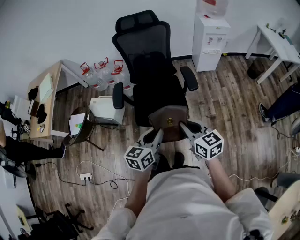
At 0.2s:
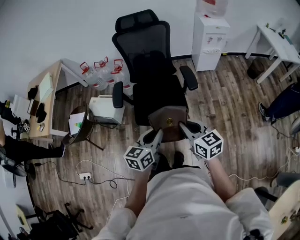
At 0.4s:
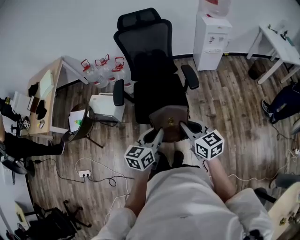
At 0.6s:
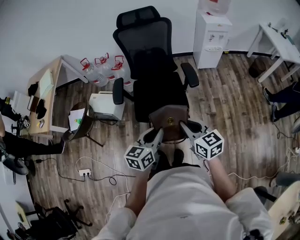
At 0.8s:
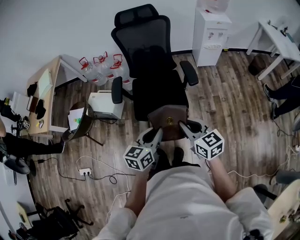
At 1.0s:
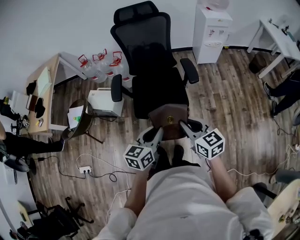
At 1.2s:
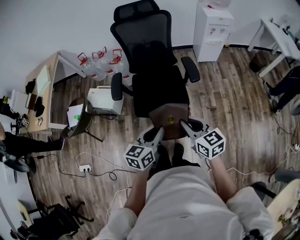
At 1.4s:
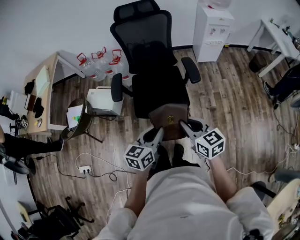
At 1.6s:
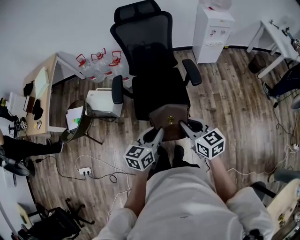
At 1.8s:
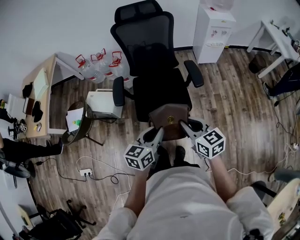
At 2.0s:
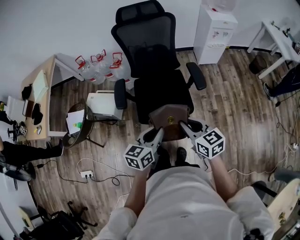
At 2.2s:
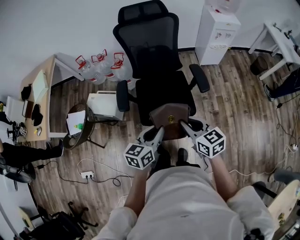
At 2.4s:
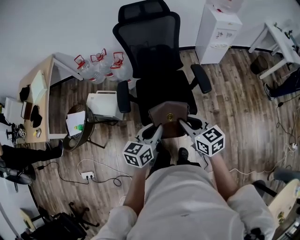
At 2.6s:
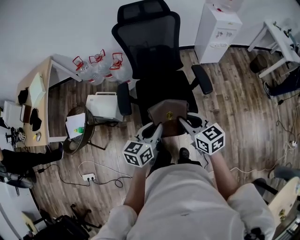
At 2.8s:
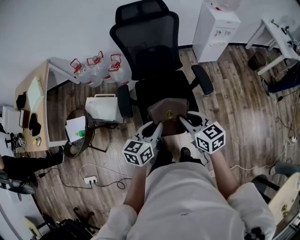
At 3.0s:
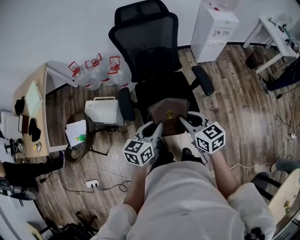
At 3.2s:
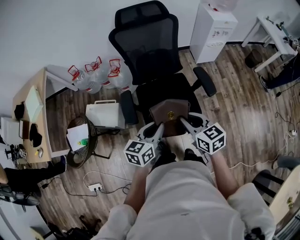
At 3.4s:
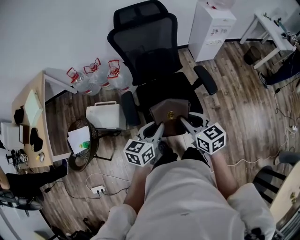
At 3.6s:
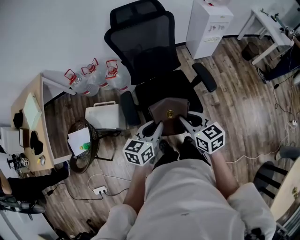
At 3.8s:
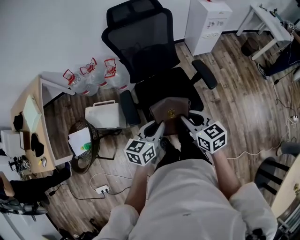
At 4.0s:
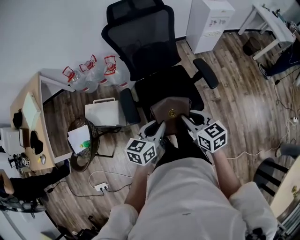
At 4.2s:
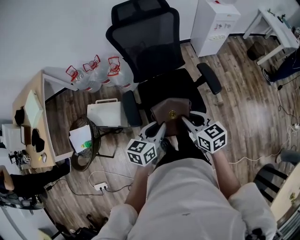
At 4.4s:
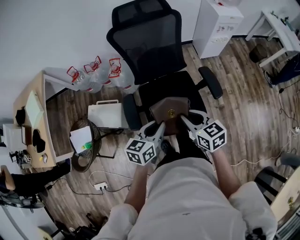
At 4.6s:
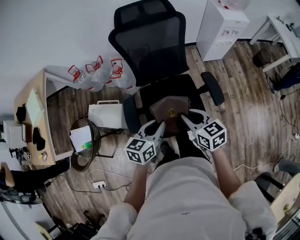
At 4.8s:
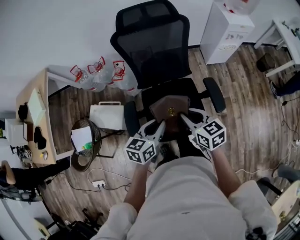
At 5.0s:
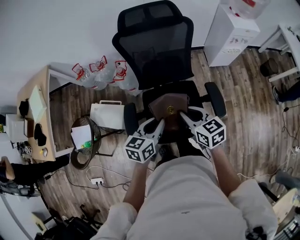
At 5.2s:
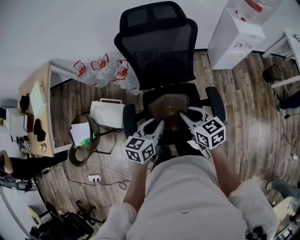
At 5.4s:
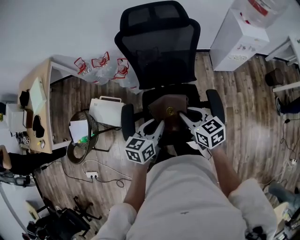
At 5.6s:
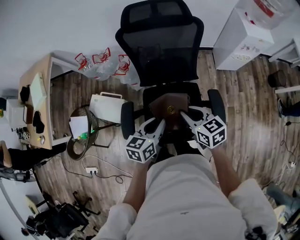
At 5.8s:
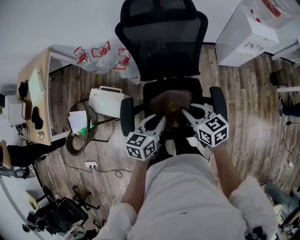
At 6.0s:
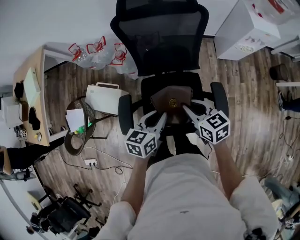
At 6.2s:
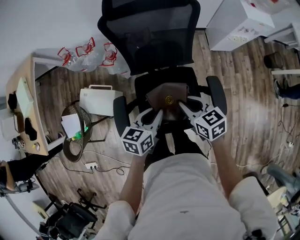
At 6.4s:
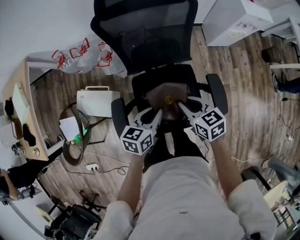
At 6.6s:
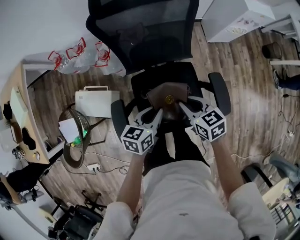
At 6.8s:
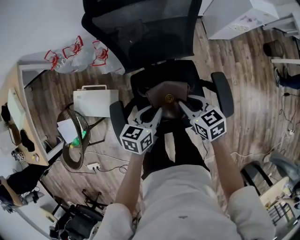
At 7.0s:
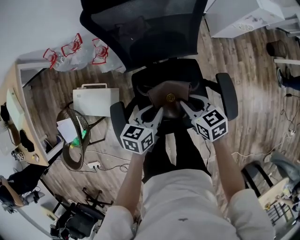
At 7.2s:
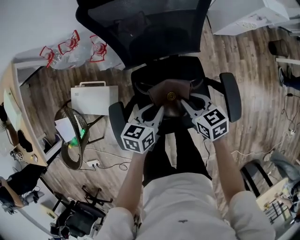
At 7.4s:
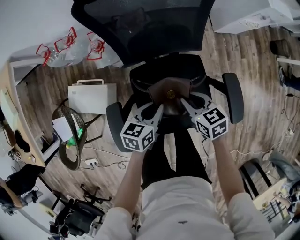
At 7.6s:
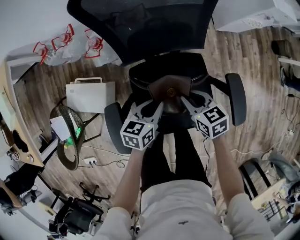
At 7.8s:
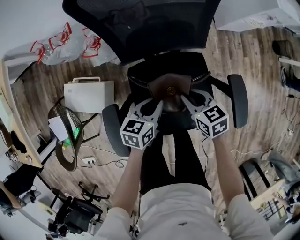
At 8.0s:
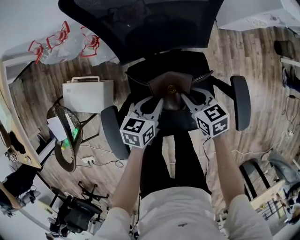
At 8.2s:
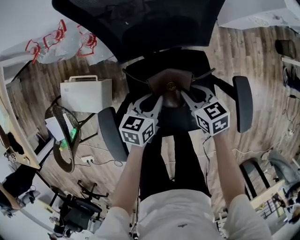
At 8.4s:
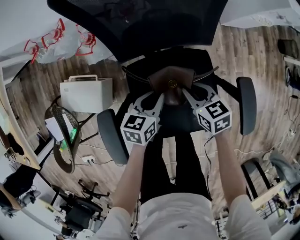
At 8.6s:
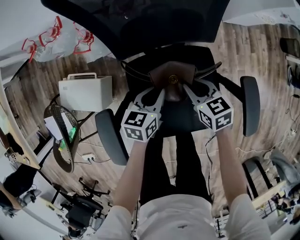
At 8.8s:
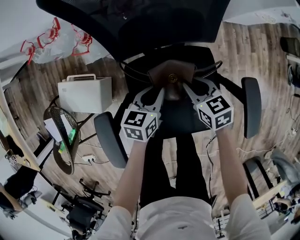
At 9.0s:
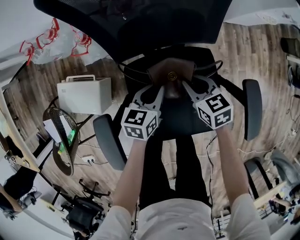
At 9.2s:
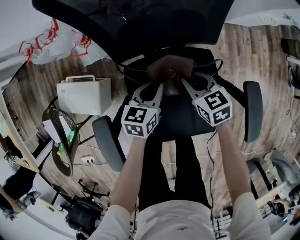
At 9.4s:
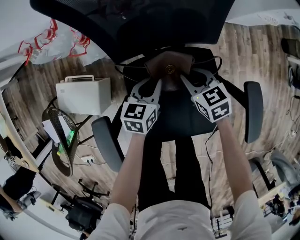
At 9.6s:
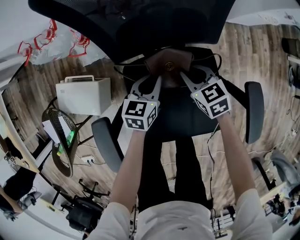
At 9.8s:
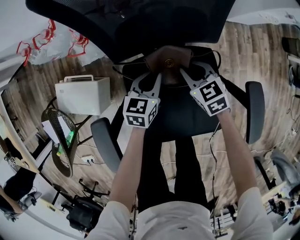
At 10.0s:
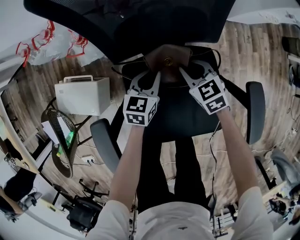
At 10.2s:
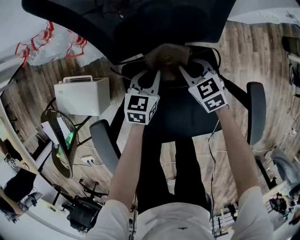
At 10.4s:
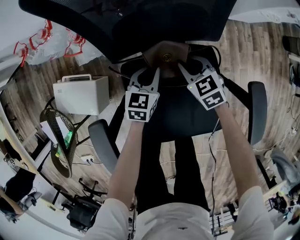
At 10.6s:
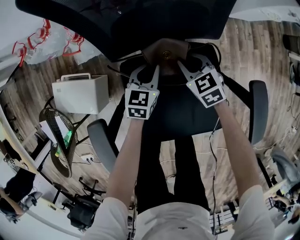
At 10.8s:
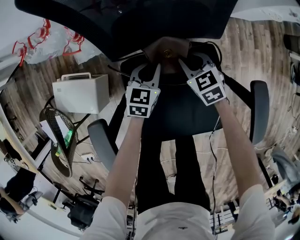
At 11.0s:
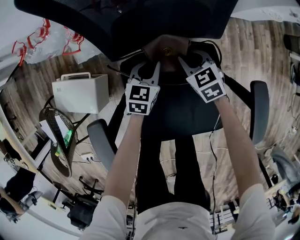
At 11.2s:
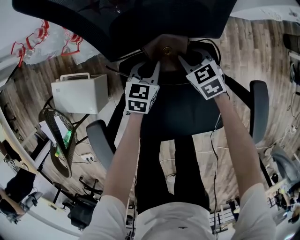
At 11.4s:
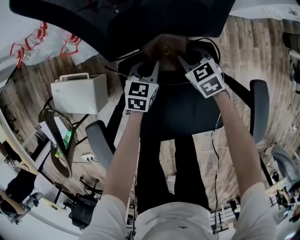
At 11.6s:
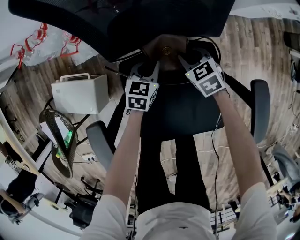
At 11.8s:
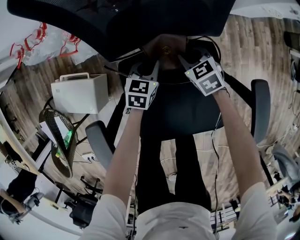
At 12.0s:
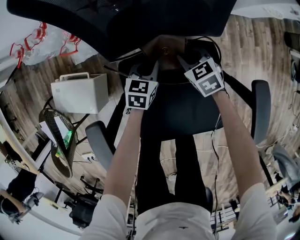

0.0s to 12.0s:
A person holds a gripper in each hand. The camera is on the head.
0.0s to 1.6s: The grippers make only small movements.
1.6s to 3.0s: Both grippers move forward and to the left, some 20 cm.
3.0s to 4.4s: Both grippers travel together forward, approximately 5 cm.
4.4s to 6.0s: The two grippers go approximately 15 cm forward.
6.0s to 7.6s: Both grippers travel together downward, roughly 20 cm.
7.6s to 9.0s: Both grippers travel together downward and forward, roughly 10 cm.
9.0s to 10.4s: Both grippers move downward and forward, about 10 cm.
10.4s to 12.0s: The left gripper is displaced downward by some 5 cm.

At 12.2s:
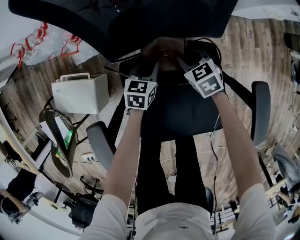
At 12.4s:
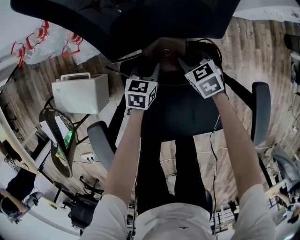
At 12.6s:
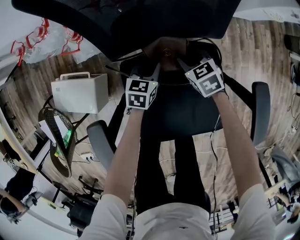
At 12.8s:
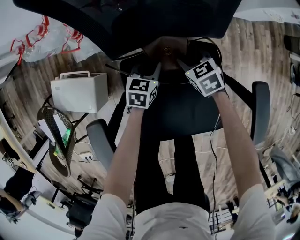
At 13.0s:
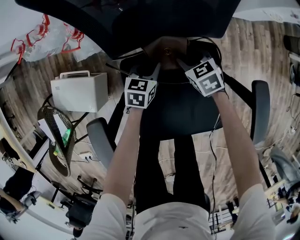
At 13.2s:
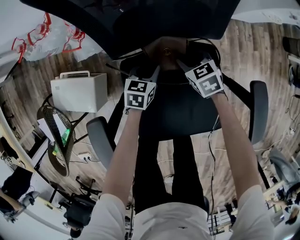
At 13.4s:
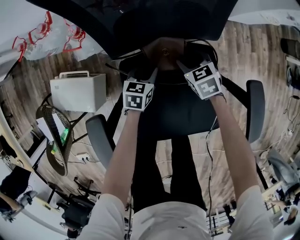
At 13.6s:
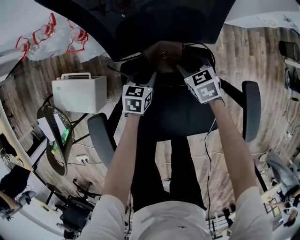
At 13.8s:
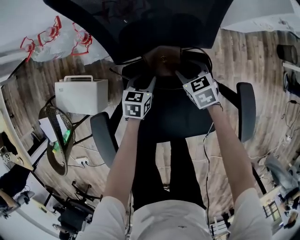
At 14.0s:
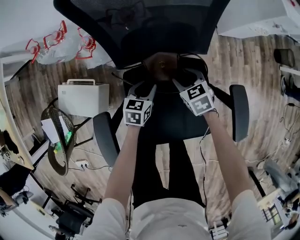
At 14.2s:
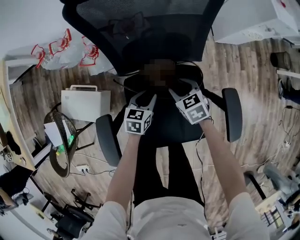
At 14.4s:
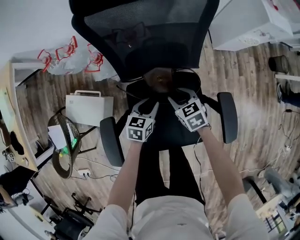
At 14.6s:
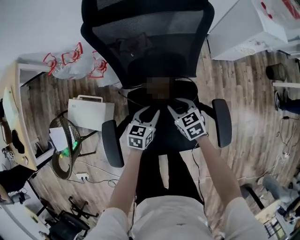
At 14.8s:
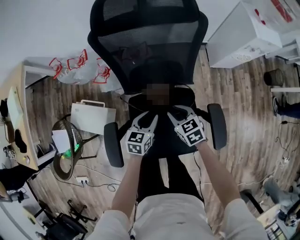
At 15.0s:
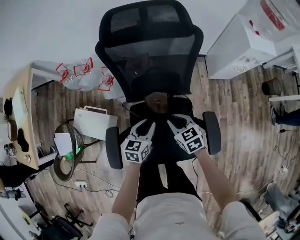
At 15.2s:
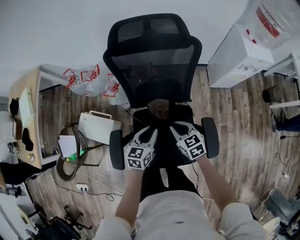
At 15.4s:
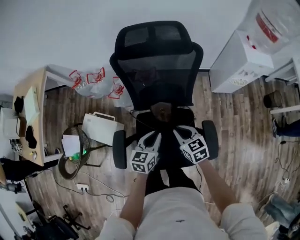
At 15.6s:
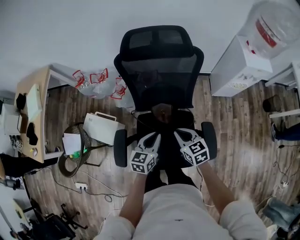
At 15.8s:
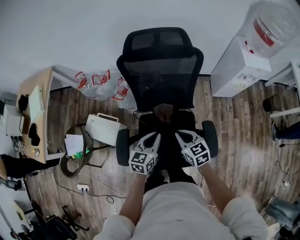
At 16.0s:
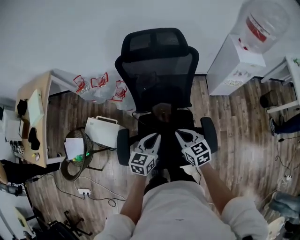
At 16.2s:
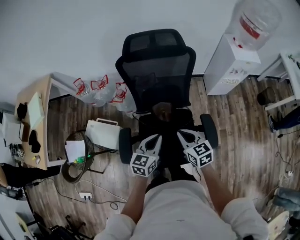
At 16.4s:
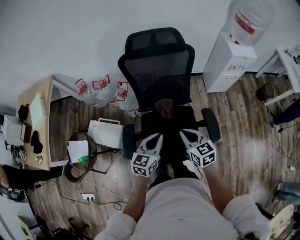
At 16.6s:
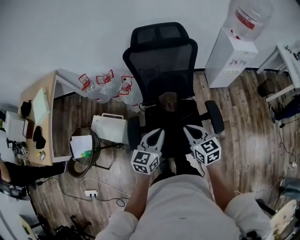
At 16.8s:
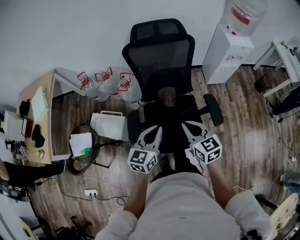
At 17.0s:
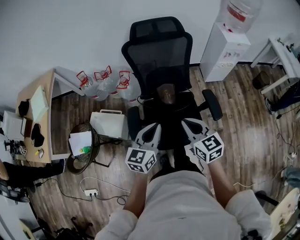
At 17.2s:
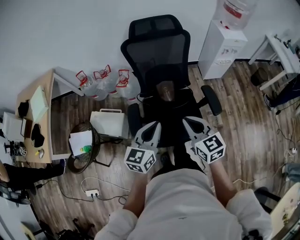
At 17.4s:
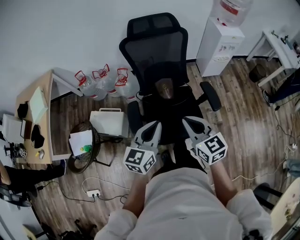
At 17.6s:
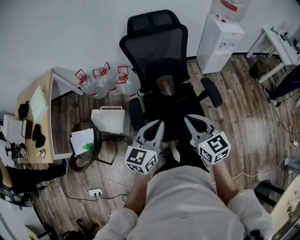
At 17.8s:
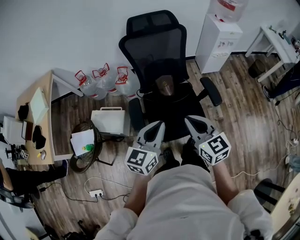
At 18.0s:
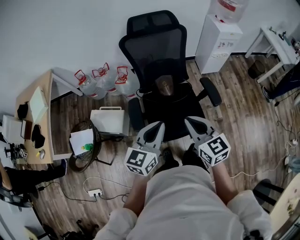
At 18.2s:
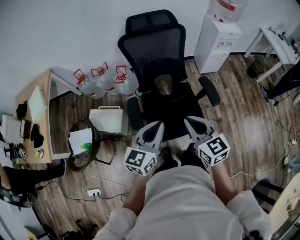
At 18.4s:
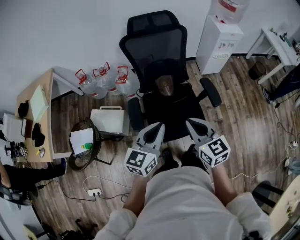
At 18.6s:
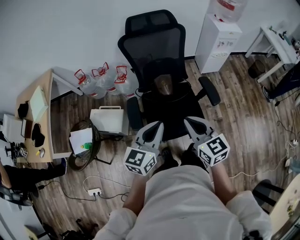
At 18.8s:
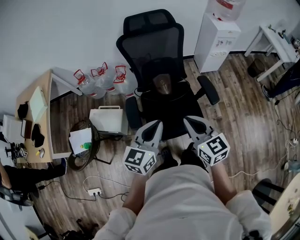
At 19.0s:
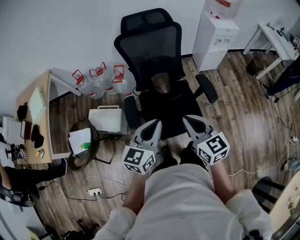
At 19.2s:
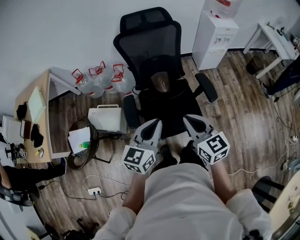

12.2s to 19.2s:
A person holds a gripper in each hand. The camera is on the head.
12.2s to 13.6s: The right gripper opens up.
13.6s to 15.0s: The grippers both shift upward by some 25 cm. The right gripper closes up.
15.0s to 16.4s: The two grippers go some 20 cm upward and backward. The right gripper closes up. Meanwhile the left gripper closes.
16.4s to 17.8s: The two grippers go about 20 cm backward and upward.
17.8s to 19.2s: The grippers stay close to where they were, moving slightly.

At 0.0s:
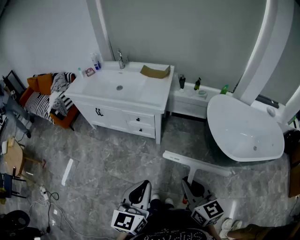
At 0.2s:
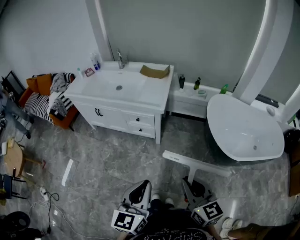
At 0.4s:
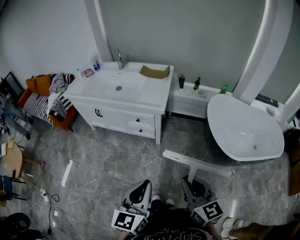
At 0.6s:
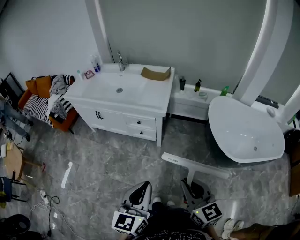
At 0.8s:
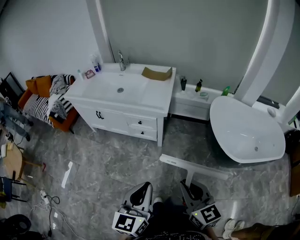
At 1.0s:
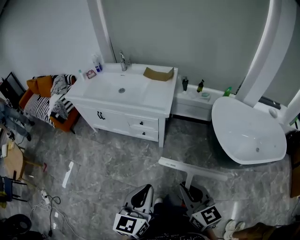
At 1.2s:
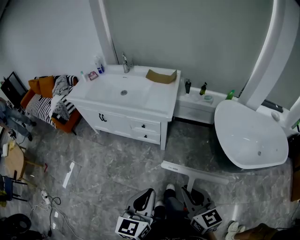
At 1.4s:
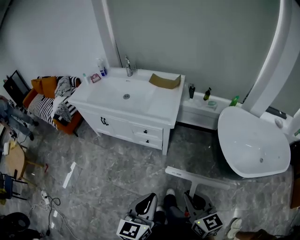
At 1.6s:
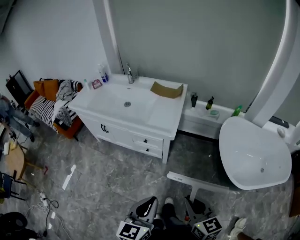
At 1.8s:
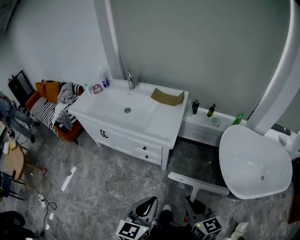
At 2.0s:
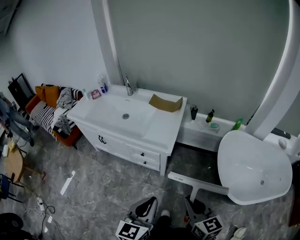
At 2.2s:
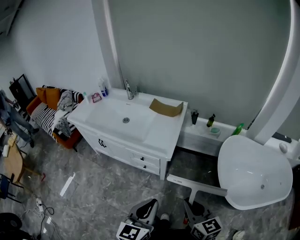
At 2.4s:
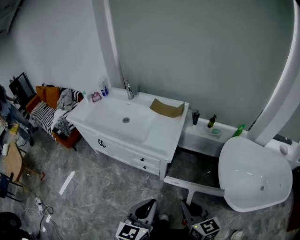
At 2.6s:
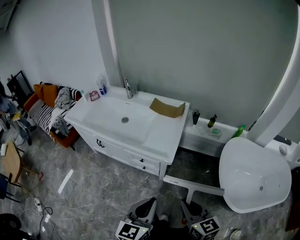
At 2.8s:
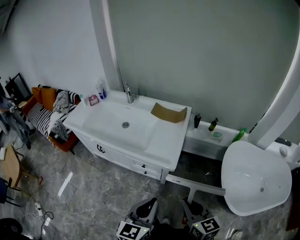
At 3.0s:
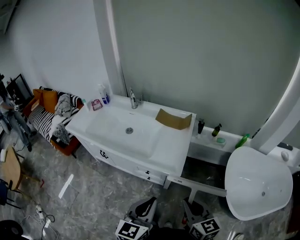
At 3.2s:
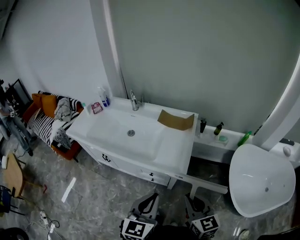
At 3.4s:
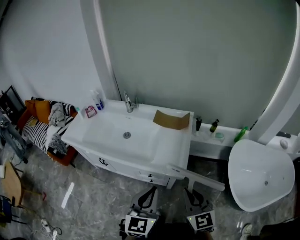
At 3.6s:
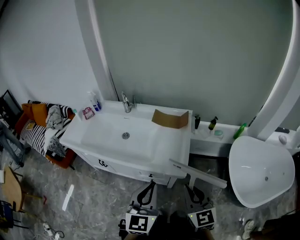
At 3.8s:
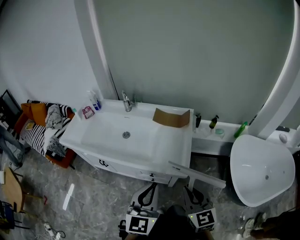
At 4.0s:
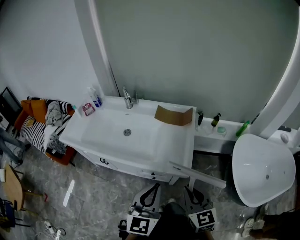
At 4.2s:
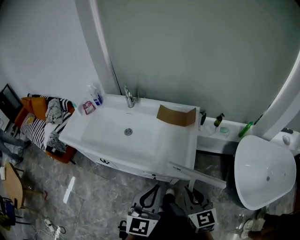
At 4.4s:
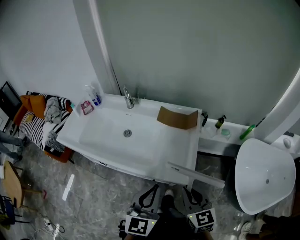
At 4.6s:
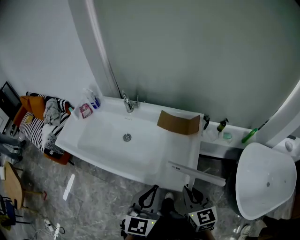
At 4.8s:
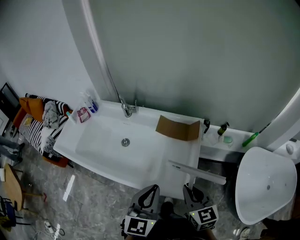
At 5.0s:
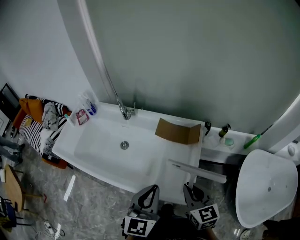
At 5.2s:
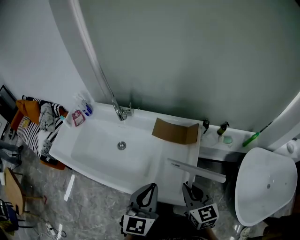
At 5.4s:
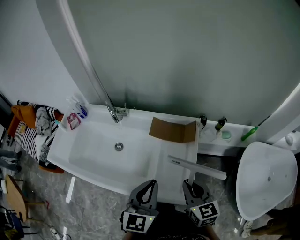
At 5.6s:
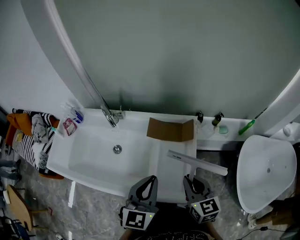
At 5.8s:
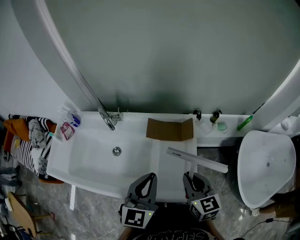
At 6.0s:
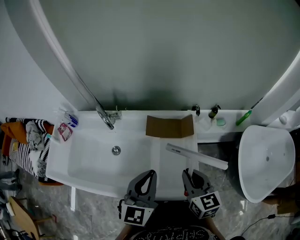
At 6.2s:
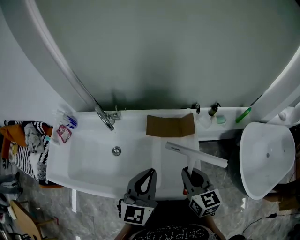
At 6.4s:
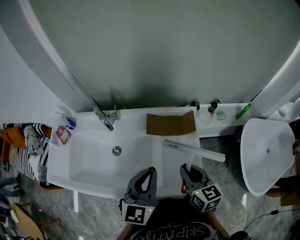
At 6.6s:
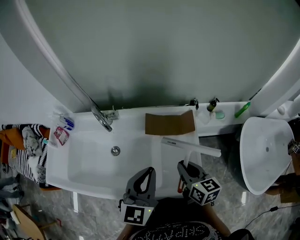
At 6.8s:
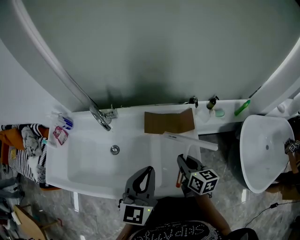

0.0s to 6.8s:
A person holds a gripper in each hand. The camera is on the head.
0.0s to 1.4s: The grippers both shift forward by roughly 5 cm.
1.4s to 2.8s: Both grippers travel together forward, about 25 cm.
2.8s to 4.0s: Both grippers travel together forward and to the left, roughly 15 cm.
4.0s to 5.4s: Both grippers move forward, roughly 20 cm.
5.4s to 6.8s: The right gripper heads forward and downward, covering about 10 cm, and turns by about 30 degrees. The left gripper travels forward by some 5 cm.
